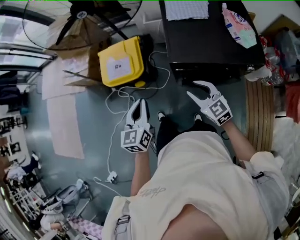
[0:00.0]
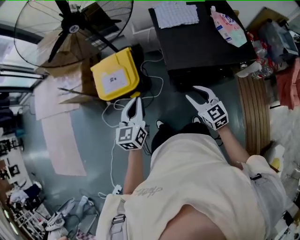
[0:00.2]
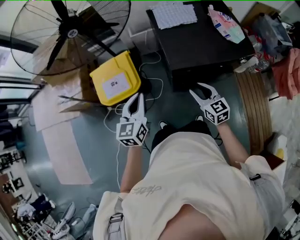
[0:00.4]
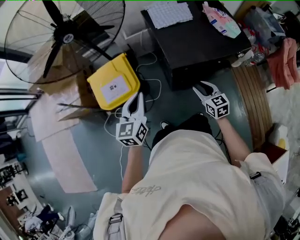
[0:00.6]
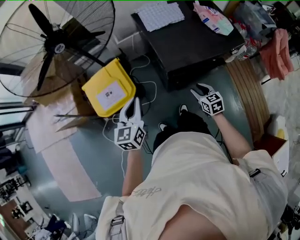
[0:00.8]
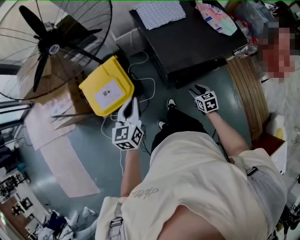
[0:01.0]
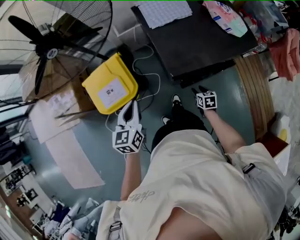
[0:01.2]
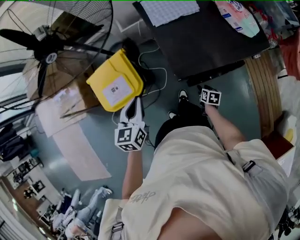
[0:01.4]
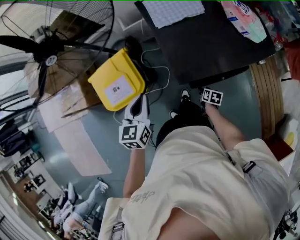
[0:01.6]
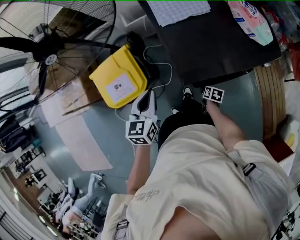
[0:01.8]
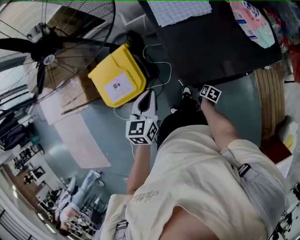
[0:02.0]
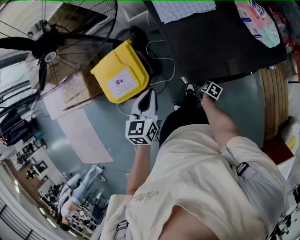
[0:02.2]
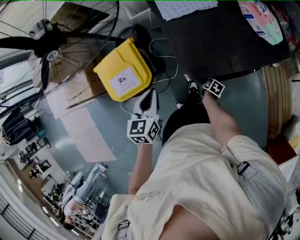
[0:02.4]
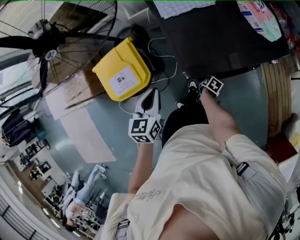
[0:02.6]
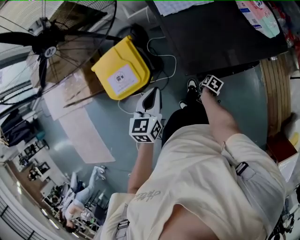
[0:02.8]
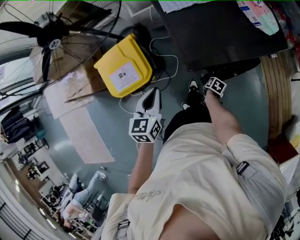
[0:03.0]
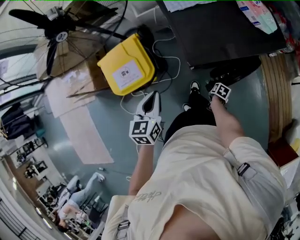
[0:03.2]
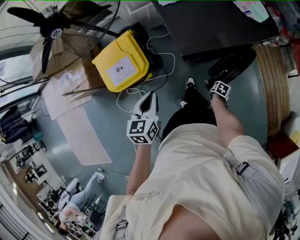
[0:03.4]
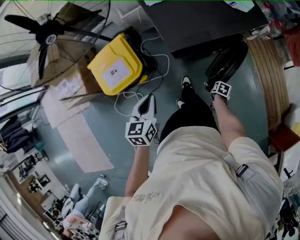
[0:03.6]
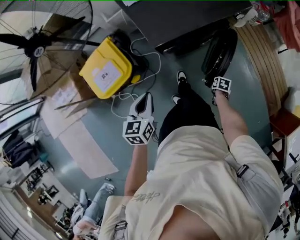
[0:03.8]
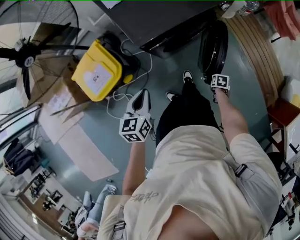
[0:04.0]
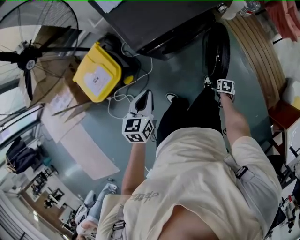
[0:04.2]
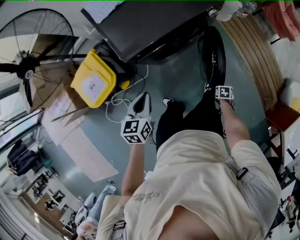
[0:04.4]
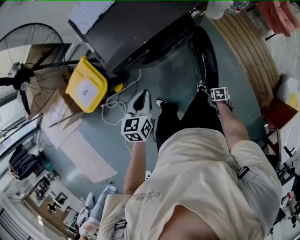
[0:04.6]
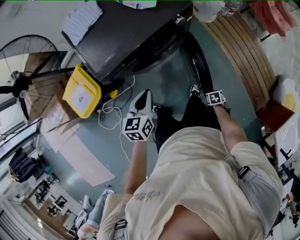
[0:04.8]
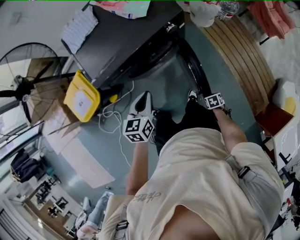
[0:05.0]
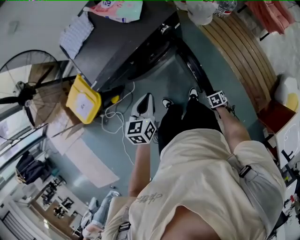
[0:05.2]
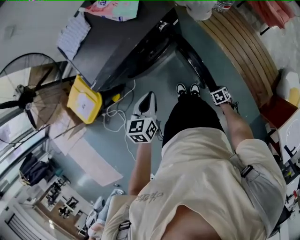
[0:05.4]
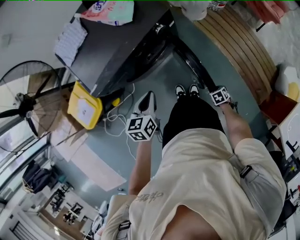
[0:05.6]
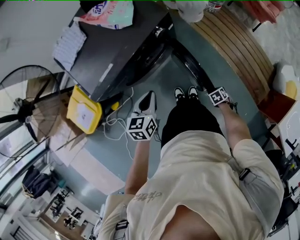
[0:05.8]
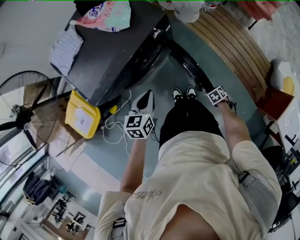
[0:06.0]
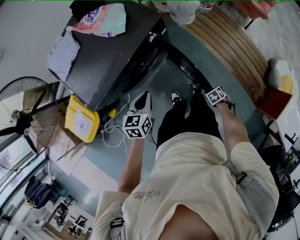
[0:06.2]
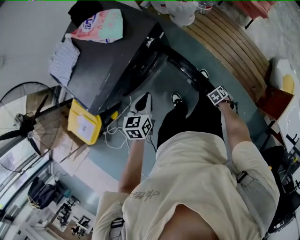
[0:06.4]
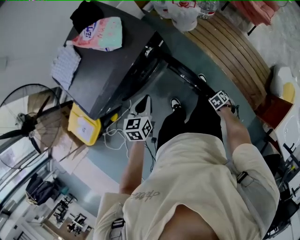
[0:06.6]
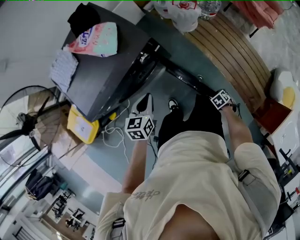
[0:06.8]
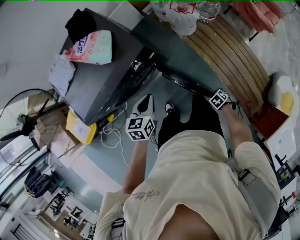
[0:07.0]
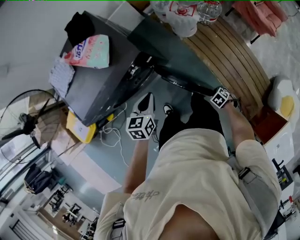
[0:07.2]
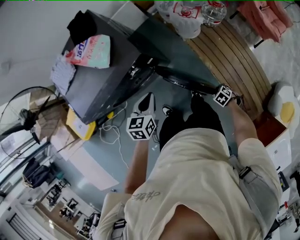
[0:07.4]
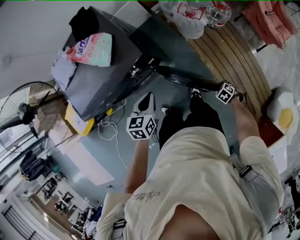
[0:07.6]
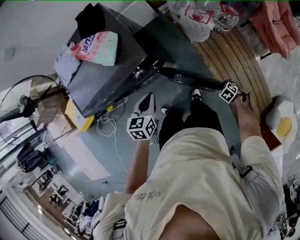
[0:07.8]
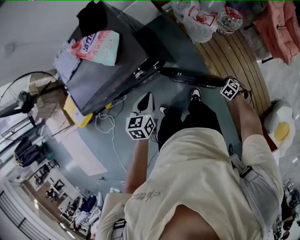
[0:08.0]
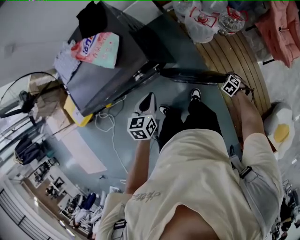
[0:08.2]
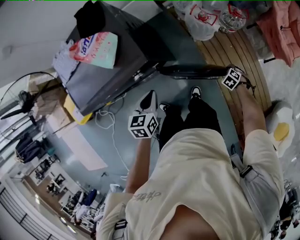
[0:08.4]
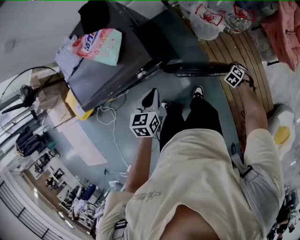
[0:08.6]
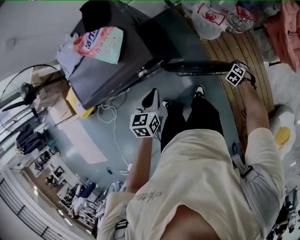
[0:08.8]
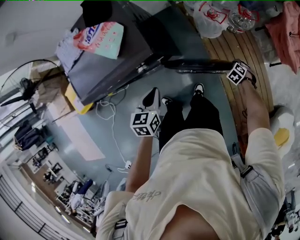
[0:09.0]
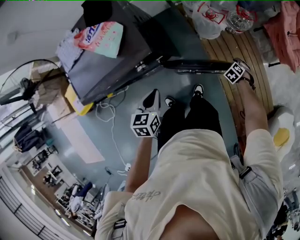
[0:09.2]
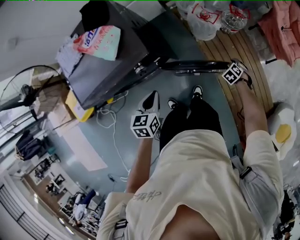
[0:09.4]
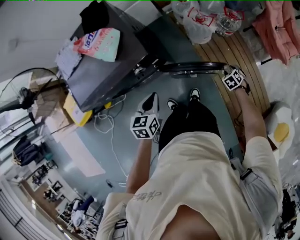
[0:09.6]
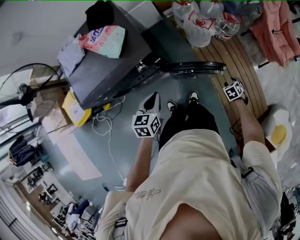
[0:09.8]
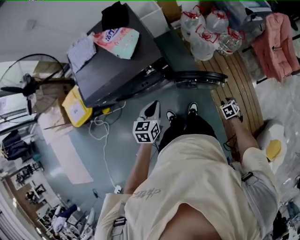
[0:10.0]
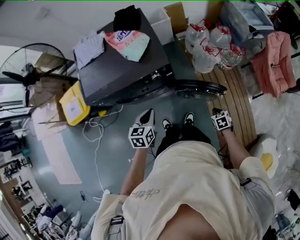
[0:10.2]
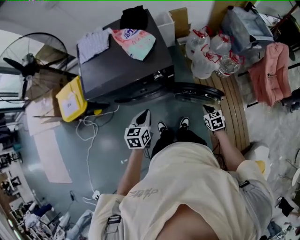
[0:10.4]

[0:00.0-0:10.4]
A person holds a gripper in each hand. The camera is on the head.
0:00.0 to 0:01.4: The left gripper moves about 20 cm, and rotates about 20 degrees; the right gripper shifts roughly 30 cm downward, and rolls clockwise, seen from behind, by approximately 60 degrees.
0:01.4 to 0:03.0: The left gripper shifts by some 5 cm; the right gripper heads downward, covering some 5 cm, and turns by roughly 20 degrees.
0:03.0 to 0:04.4: The right gripper shifts by some 35 cm, and rotates some 20 degrees, while the left gripper moves approximately 20 cm.
0:04.4 to 0:06.0: The right gripper ends up roughly 10 cm from where it was, and swivels approximately 20 degrees, while the left gripper moves some 25 cm.
0:06.0 to 0:07.4: The right gripper shifts by roughly 25 cm, and swivels approximately 30 degrees. The left gripper ends up about 20 cm from where it was.
0:07.4 to 0:09.0: The right gripper changes place by some 25 cm.
0:09.0 to 0:10.4: The left gripper ends up approximately 15 cm from where it was. Meanwhile the right gripper moves some 30 cm, swivels about 40 degrees, and closes.

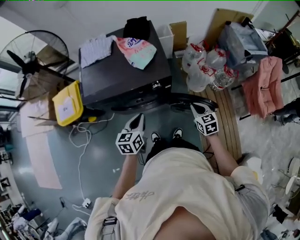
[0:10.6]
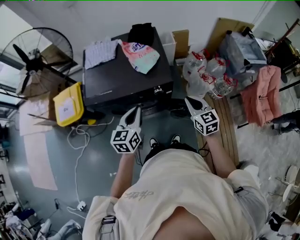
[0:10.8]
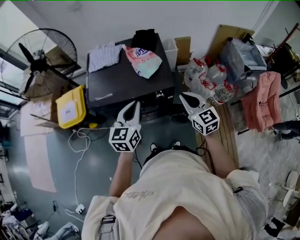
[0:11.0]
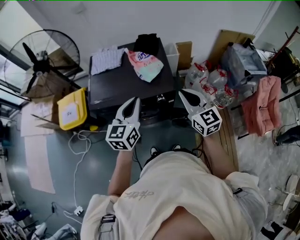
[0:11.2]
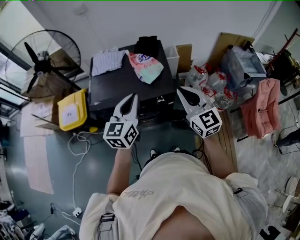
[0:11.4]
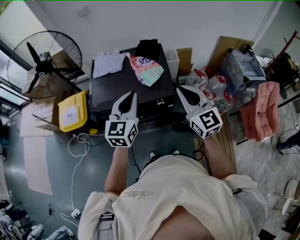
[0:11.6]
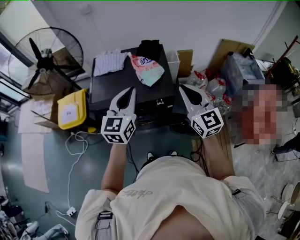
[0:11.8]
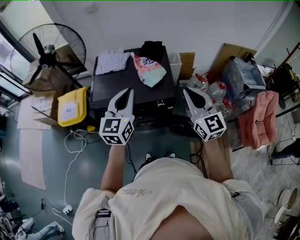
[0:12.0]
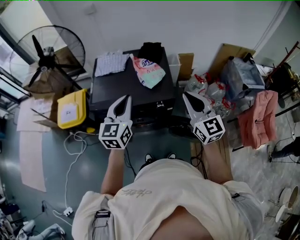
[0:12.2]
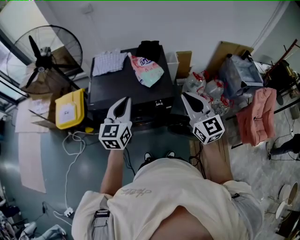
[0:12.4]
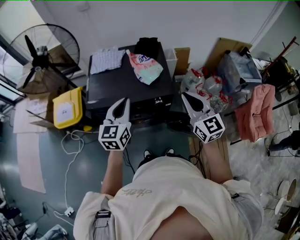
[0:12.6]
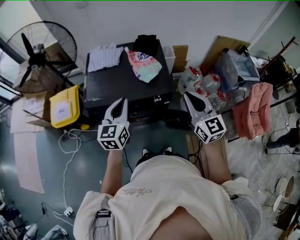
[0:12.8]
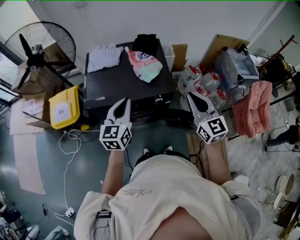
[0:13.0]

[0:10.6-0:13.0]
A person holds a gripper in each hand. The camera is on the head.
0:10.6 to 0:11.8: Both grippers move upward, roughly 25 cm. The left gripper swivels roughly 30 degrees, while the right gripper tips its fingers upward by approximately 40 degrees.
0:11.8 to 0:13.0: The left gripper travels downward by about 5 cm.

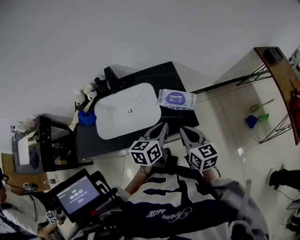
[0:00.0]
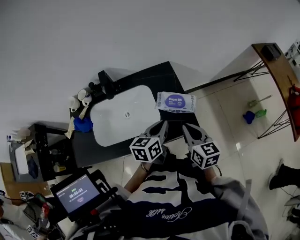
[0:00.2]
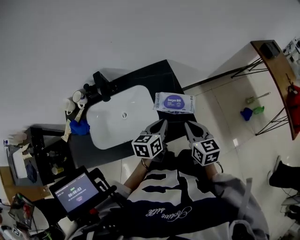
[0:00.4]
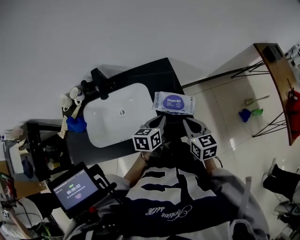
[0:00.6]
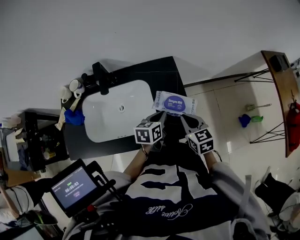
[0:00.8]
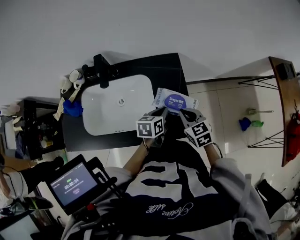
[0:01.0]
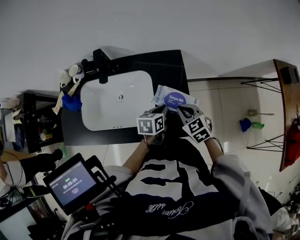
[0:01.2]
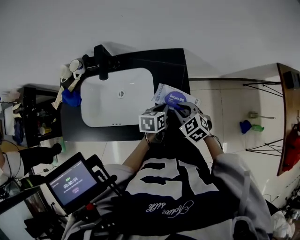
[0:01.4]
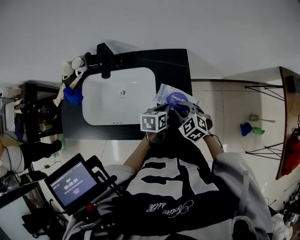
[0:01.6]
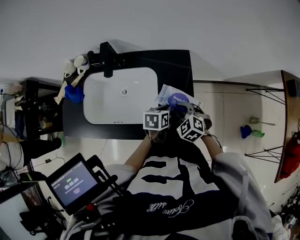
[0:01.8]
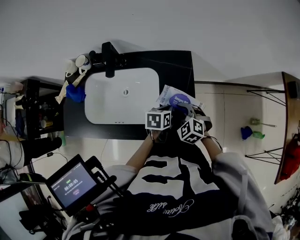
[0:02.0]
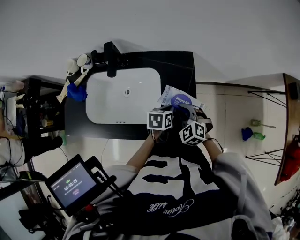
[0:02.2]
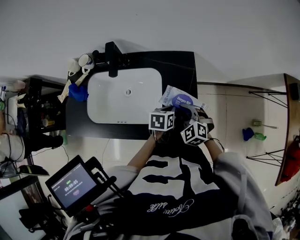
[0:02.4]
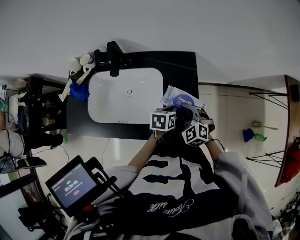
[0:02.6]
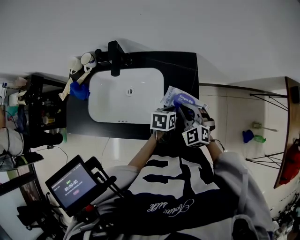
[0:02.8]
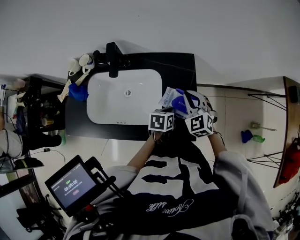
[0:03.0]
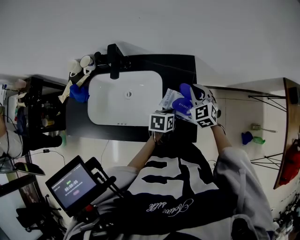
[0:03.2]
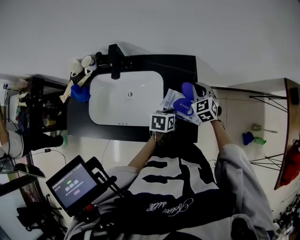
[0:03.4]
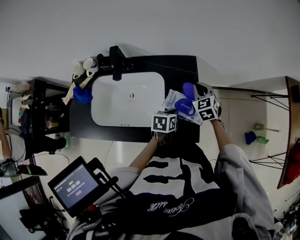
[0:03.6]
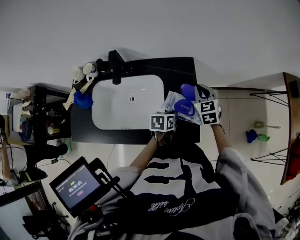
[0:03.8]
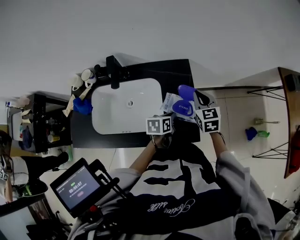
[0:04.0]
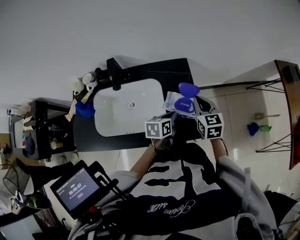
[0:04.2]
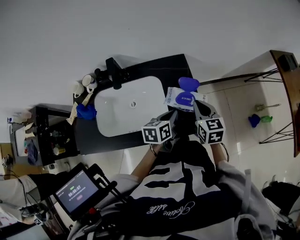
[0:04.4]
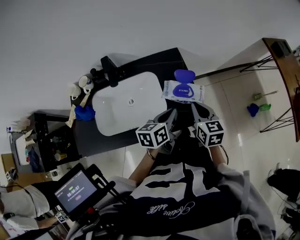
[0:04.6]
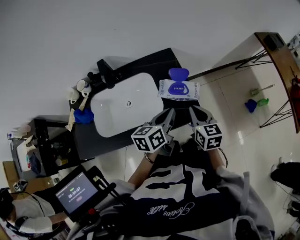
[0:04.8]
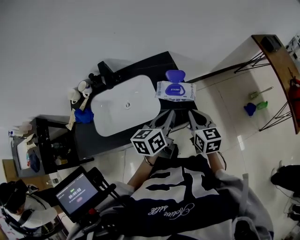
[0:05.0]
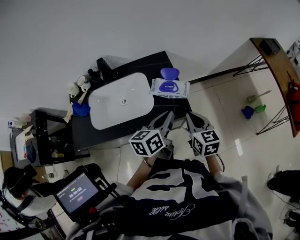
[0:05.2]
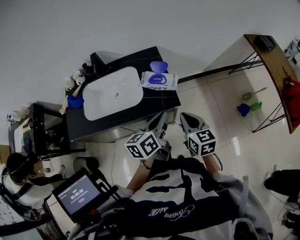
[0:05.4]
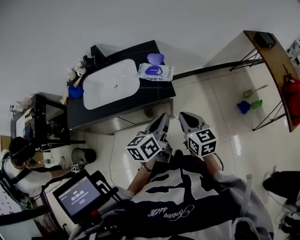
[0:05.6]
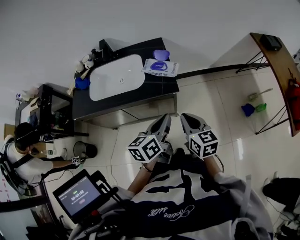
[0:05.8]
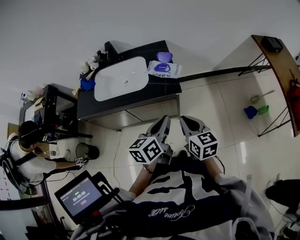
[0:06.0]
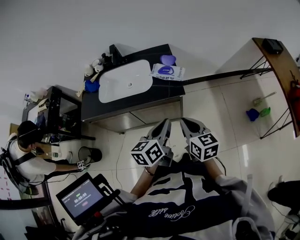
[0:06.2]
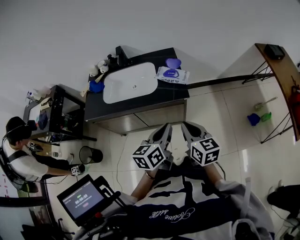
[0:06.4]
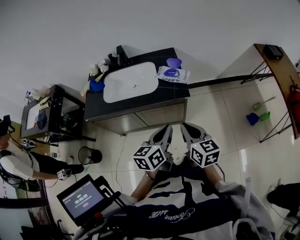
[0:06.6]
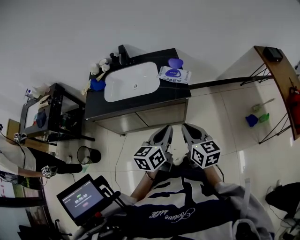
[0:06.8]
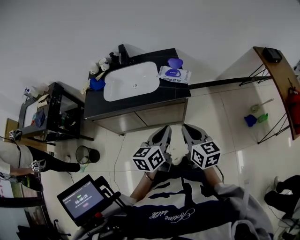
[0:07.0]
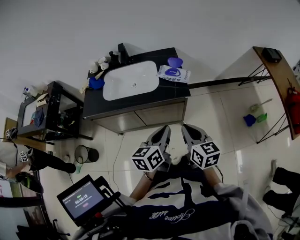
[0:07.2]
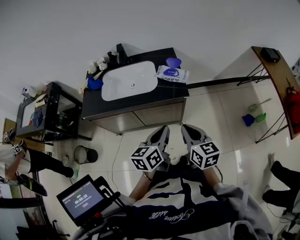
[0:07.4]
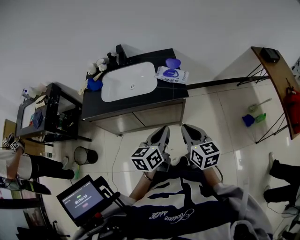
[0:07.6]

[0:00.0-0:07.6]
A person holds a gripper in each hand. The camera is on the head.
0:00.0 to 0:01.6: The left gripper heads downward and forward, covering some 20 cm, and swivels approximately 30 degrees; the right gripper travels forward and downward by some 20 cm, and tips its fingers downward by about 30 degrees.
0:01.6 to 0:03.0: The right gripper goes some 10 cm forward and upward, and swivels roughly 20 degrees.
0:03.0 to 0:04.6: The right gripper is displaced backward by some 10 cm, and rolls clockwise, seen from behind, by about 50 degrees. Meanwhile the left gripper heads upward and backward, covering some 15 cm, and swivels about 20 degrees.
0:04.6 to 0:06.0: The grippers both shift backward and to the right by approximately 30 cm.
0:06.0 to 0:07.6: The two grippers go roughly 5 cm to the left.

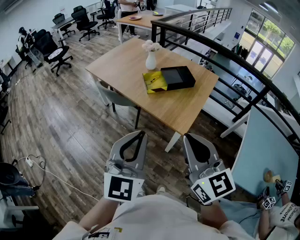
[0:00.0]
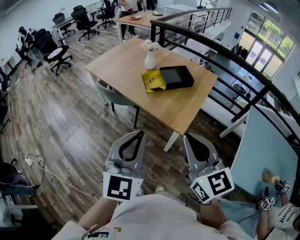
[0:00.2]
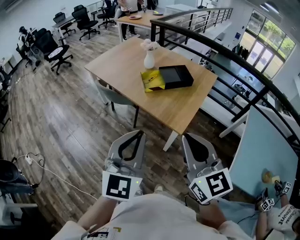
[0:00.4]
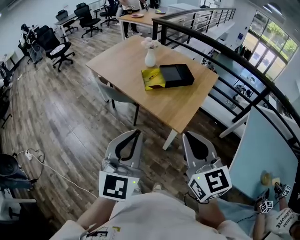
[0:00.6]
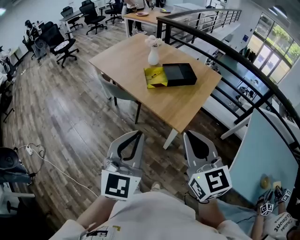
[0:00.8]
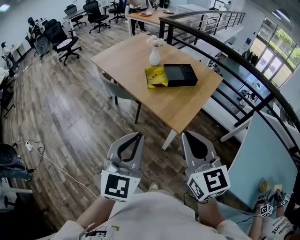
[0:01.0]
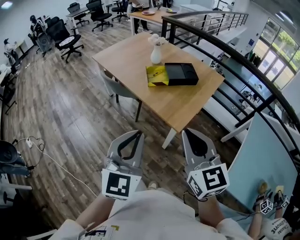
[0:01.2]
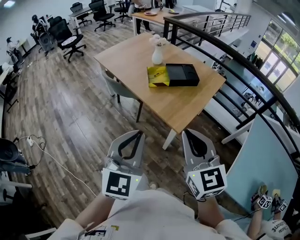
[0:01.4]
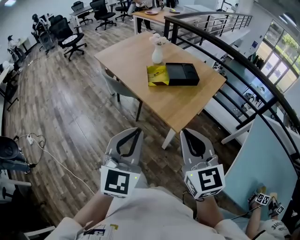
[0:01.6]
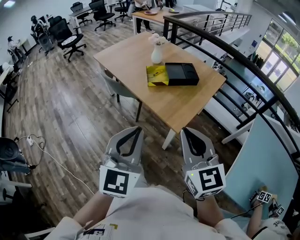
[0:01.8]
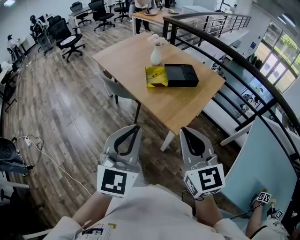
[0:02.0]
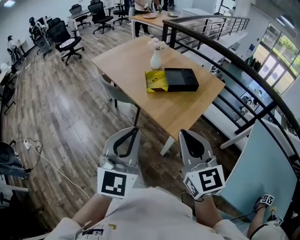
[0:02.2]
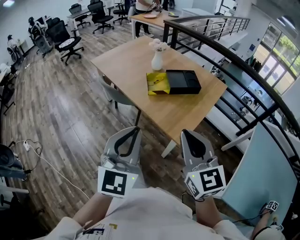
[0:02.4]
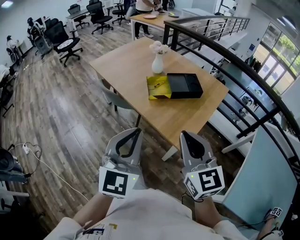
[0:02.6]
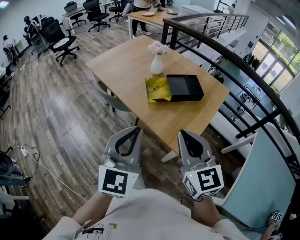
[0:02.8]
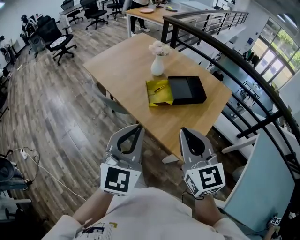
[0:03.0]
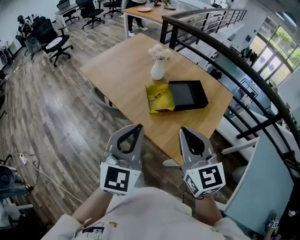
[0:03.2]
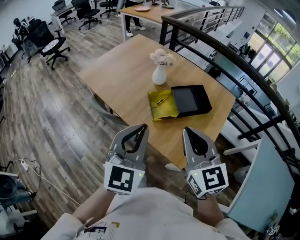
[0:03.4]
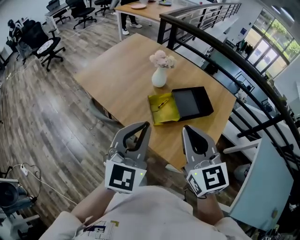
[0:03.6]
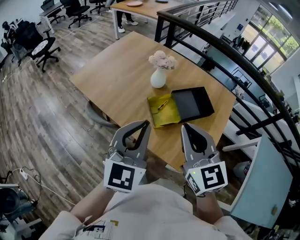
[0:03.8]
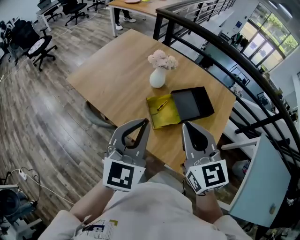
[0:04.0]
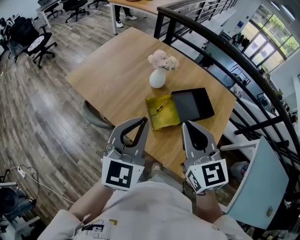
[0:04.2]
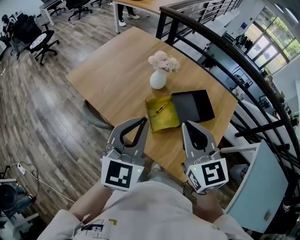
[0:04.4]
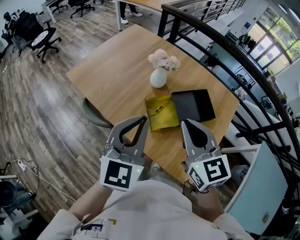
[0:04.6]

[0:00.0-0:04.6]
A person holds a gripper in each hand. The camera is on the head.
0:00.0 to 0:01.6: The grippers both shift to the right by about 10 cm.
0:01.6 to 0:03.0: The two grippers go approximately 25 cm forward.
0:03.0 to 0:04.6: Both grippers move forward, some 30 cm.
